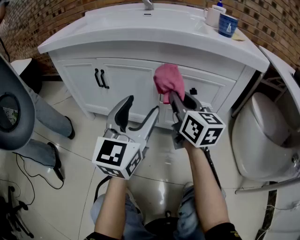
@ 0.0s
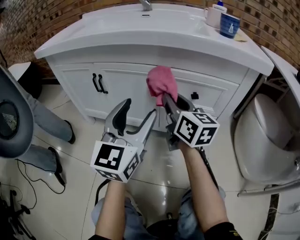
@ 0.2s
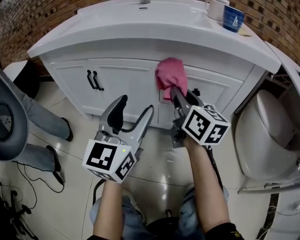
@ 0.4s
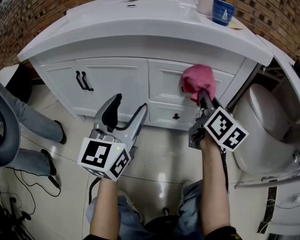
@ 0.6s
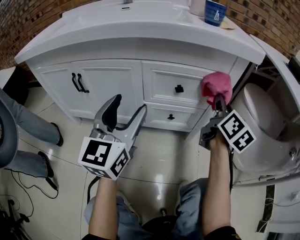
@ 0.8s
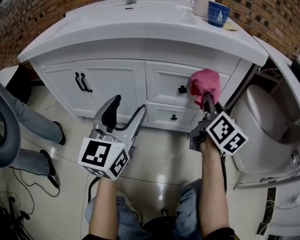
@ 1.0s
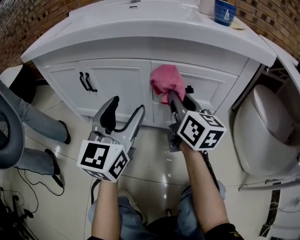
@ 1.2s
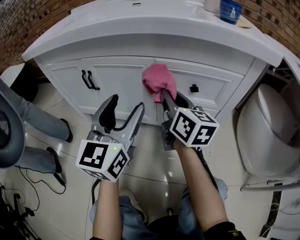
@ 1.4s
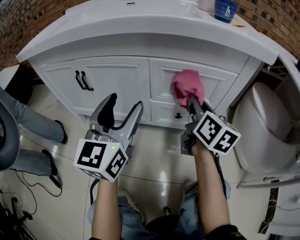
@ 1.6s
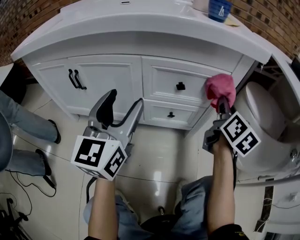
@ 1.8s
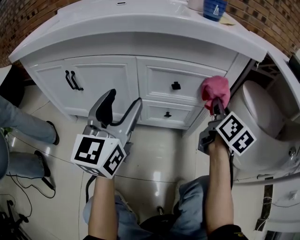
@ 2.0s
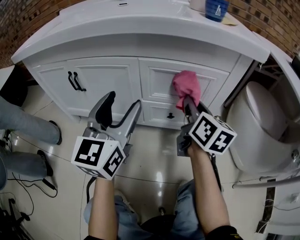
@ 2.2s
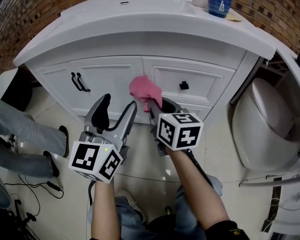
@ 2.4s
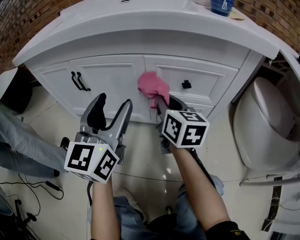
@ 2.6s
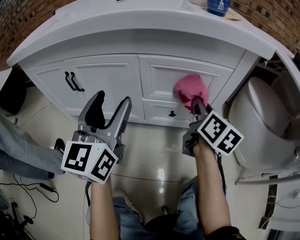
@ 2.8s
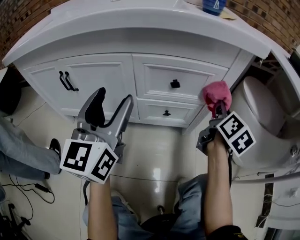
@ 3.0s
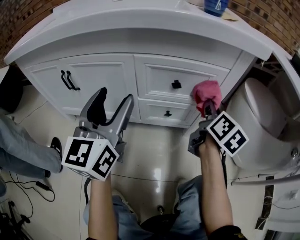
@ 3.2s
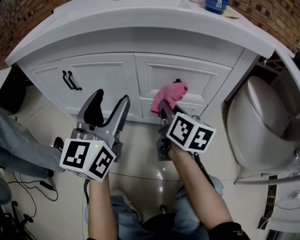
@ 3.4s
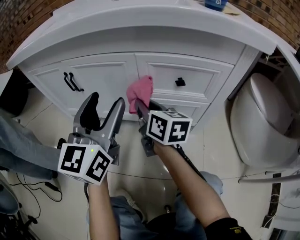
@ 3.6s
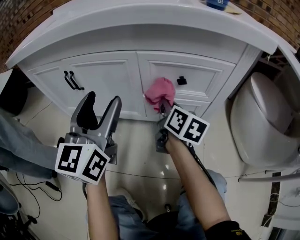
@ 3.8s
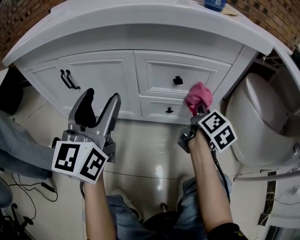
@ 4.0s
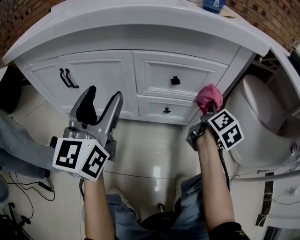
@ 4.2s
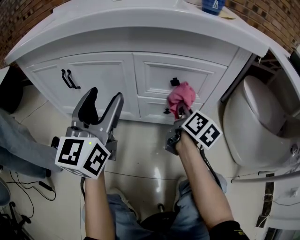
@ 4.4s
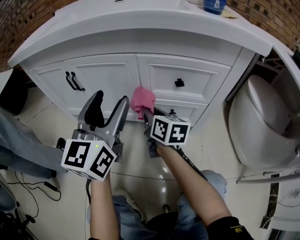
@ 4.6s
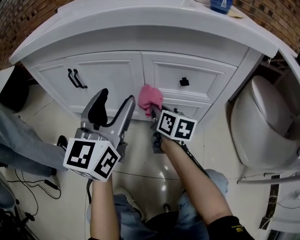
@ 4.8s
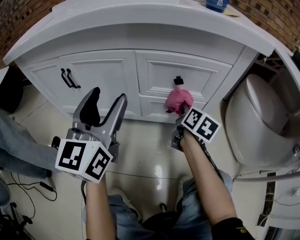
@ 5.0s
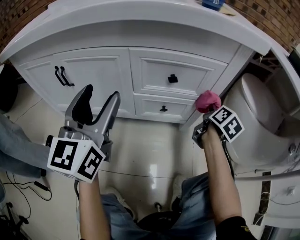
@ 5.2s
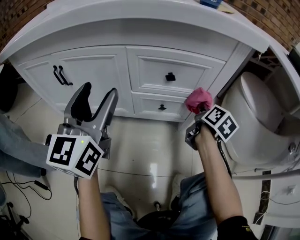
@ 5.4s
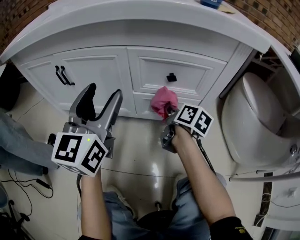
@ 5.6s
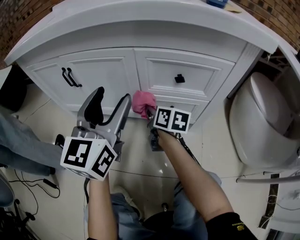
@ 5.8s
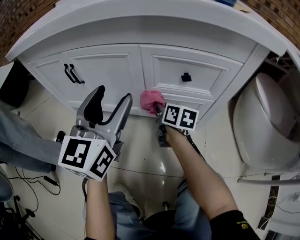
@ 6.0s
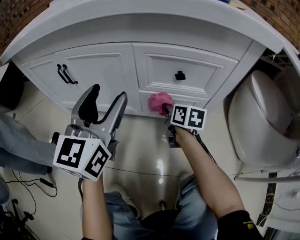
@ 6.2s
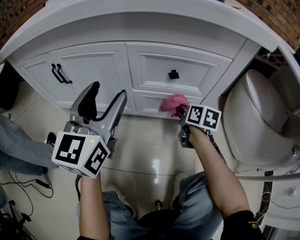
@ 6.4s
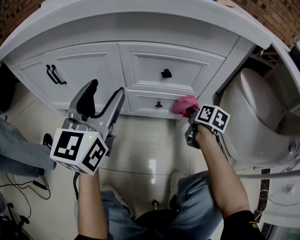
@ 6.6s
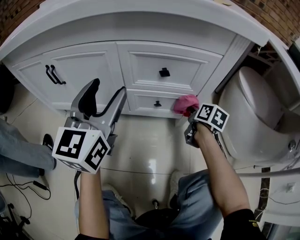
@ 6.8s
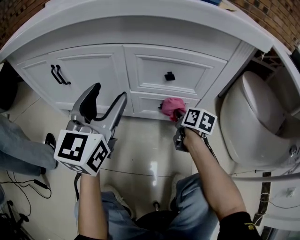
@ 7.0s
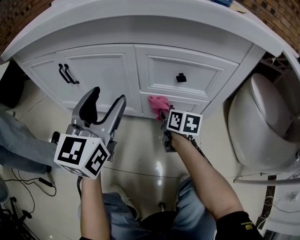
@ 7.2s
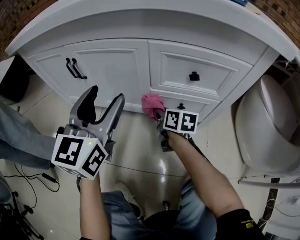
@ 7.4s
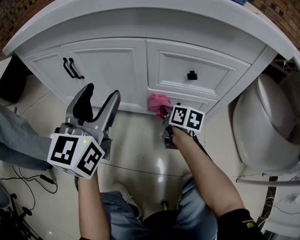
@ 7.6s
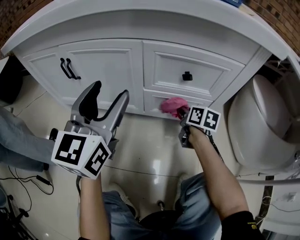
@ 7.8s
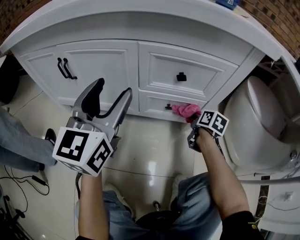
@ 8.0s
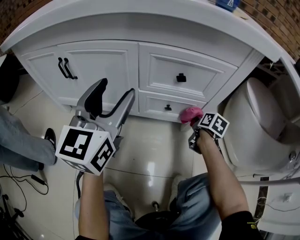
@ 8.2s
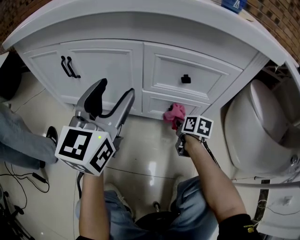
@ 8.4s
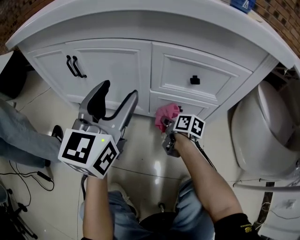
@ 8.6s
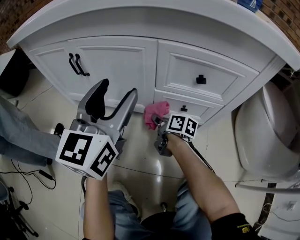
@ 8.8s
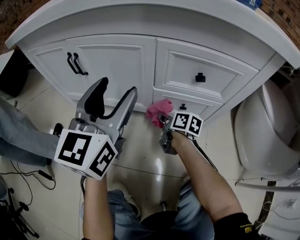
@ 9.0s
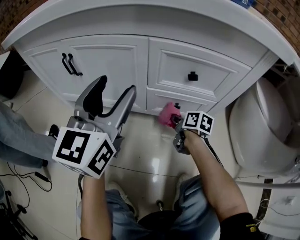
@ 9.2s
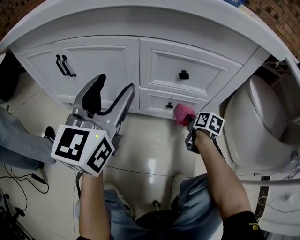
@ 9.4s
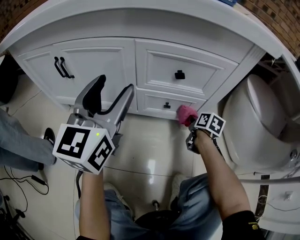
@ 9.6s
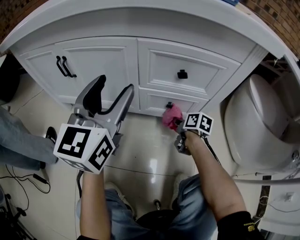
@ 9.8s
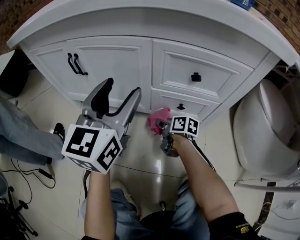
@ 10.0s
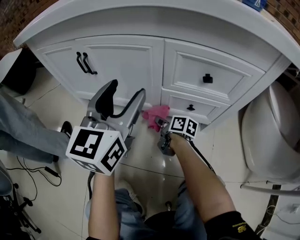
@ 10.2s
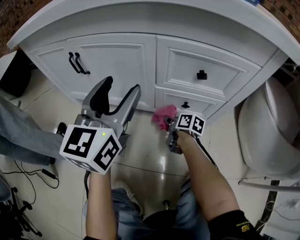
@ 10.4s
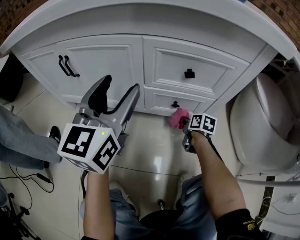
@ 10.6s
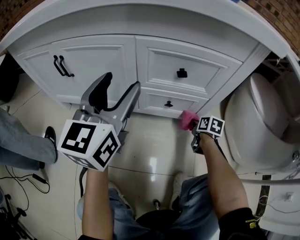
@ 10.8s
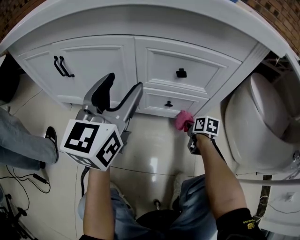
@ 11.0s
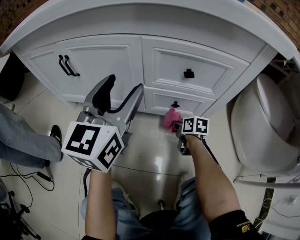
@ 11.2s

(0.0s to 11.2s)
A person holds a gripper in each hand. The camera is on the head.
0.0s - 1.6s: The left gripper heads forward, covering about 5 cm. Meanwhile the right gripper goes left and right, approximately 25 cm each way, reversing 2 times, and turns by about 20 degrees.
1.6s - 3.2s: The right gripper moves left and right over approximately 30 cm, changing direction 3 times.
3.2s - 4.8s: The right gripper ends up some 25 cm from where it was, and turns by roughly 30 degrees.
6.4s - 8.0s: The right gripper moves left and right over approximately 25 cm, changing direction 2 times. Meanwhile the left gripper travels to the left and back again, roughly 5 cm each way.
8.0s - 9.6s: The right gripper goes to the left and returns, roughly 25 cm each way.
9.6s - 11.2s: The right gripper goes left and right, some 30 cm each way, reversing 2 times, and changes its angle by approximately 20 degrees.

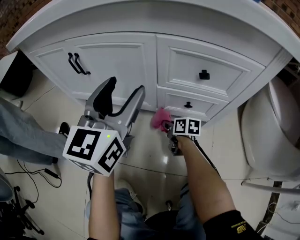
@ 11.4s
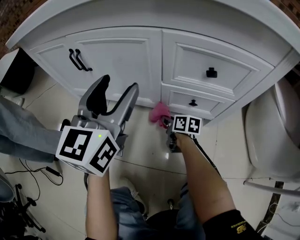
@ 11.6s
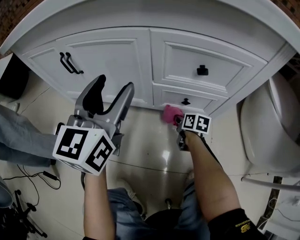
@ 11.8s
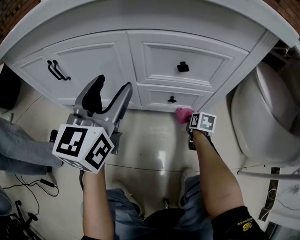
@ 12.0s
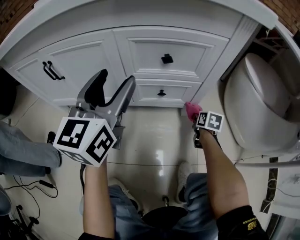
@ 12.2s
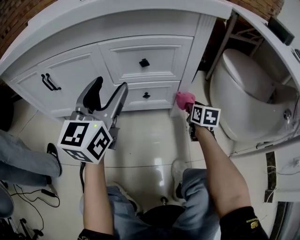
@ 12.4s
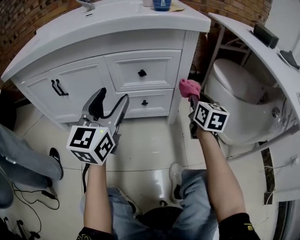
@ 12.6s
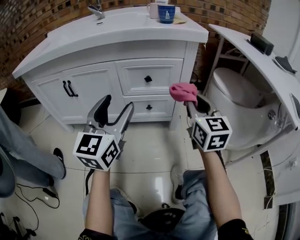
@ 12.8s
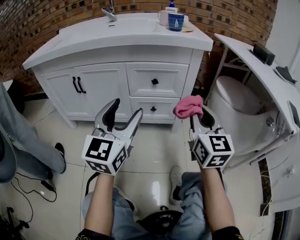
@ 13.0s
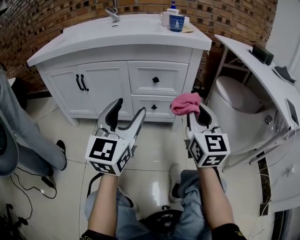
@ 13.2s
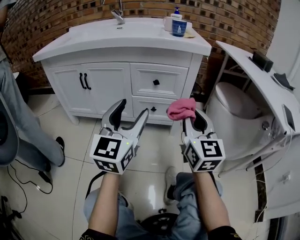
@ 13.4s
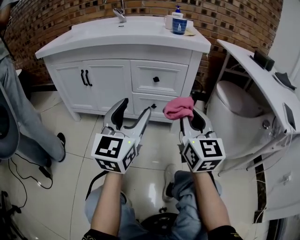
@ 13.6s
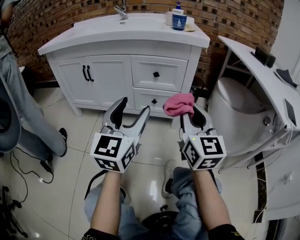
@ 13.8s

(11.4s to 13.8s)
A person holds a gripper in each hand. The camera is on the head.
11.4s - 12.6s: The right gripper is displaced upward by about 30 cm, and swivels about 50 degrees. Meanwhile the left gripper ends up some 15 cm from where it was.
12.6s - 13.8s: The right gripper heads backward and upward, covering about 25 cm, and swivels roughly 30 degrees; the left gripper travels backward by about 15 cm.

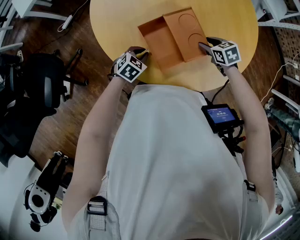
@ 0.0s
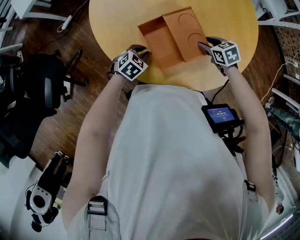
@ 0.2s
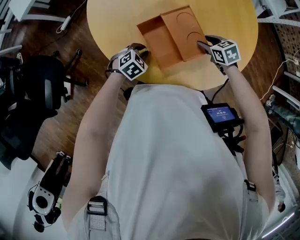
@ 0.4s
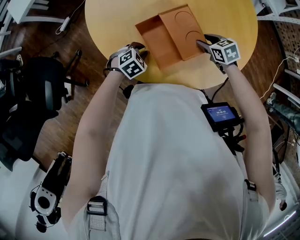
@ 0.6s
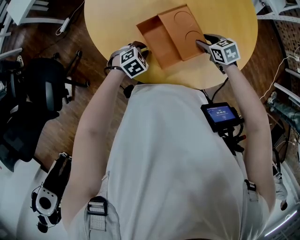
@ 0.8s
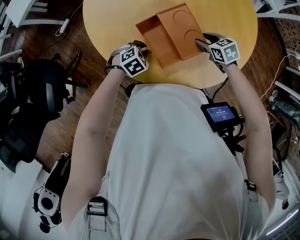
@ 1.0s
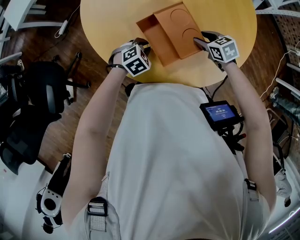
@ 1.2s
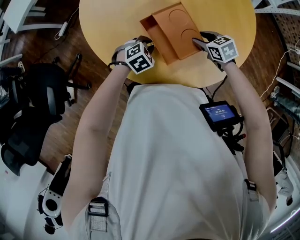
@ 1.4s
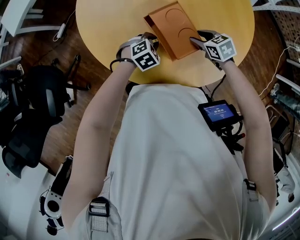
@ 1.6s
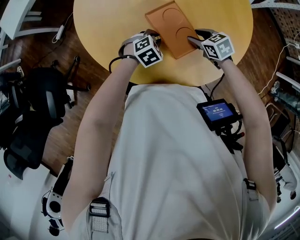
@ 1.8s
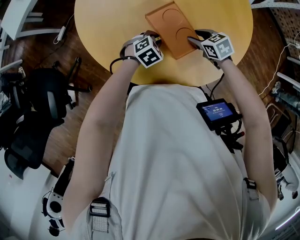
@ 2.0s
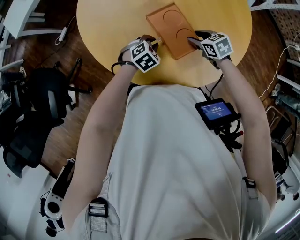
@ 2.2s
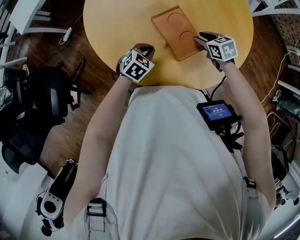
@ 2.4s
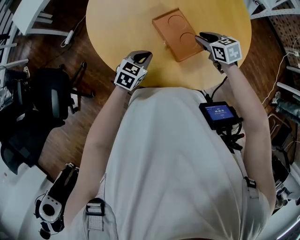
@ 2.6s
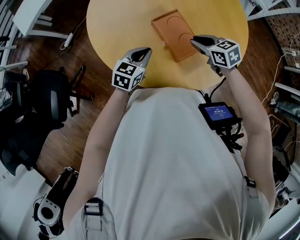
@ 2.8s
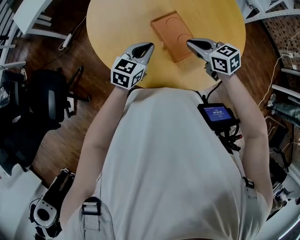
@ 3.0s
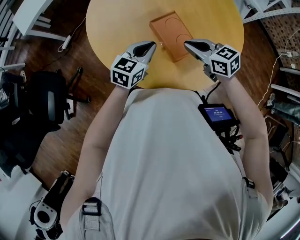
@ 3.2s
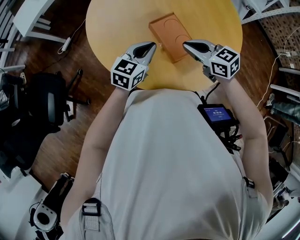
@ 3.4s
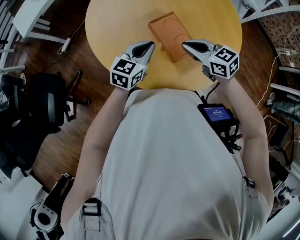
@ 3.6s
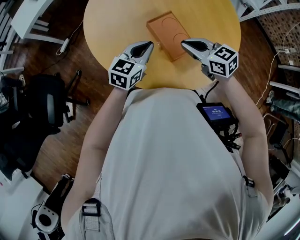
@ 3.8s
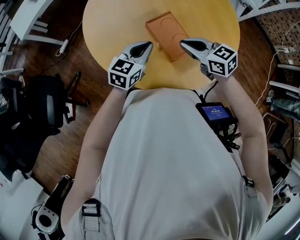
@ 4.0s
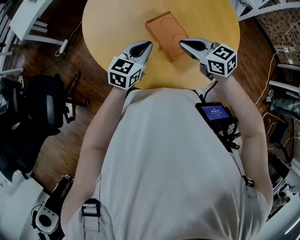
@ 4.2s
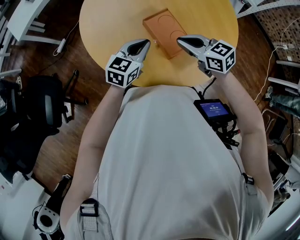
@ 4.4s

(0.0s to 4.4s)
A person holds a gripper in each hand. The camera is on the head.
0.0s - 1.4s: The left gripper goes roughly 5 cm to the right, and rotates some 20 degrees.
1.4s - 3.0s: Both grippers travel together upward, about 15 cm. The left gripper tips its fingers upward by some 40 degrees, while the right gripper turns by some 20 degrees, and closes.
3.0s - 4.4s: There are only small adjustments of the grippers.

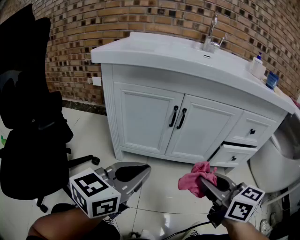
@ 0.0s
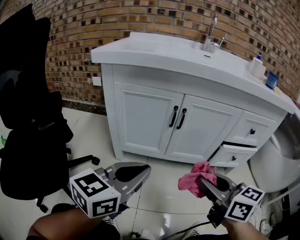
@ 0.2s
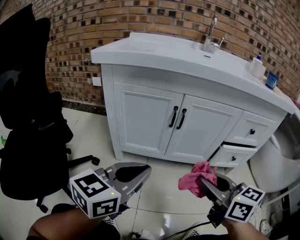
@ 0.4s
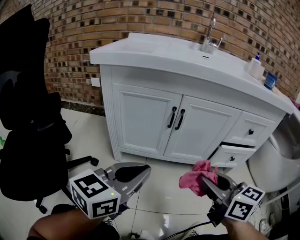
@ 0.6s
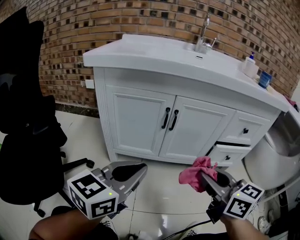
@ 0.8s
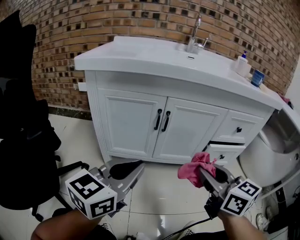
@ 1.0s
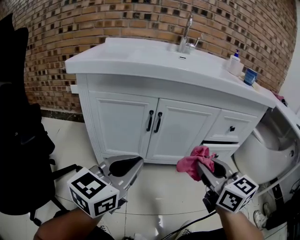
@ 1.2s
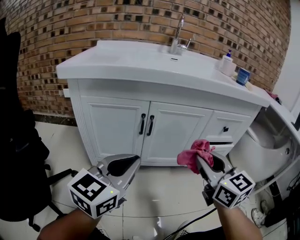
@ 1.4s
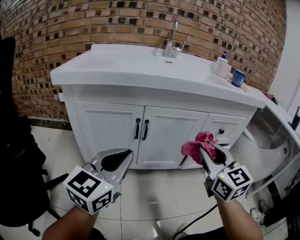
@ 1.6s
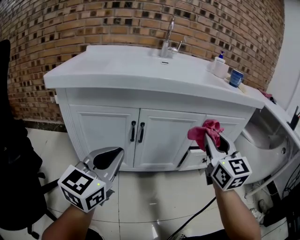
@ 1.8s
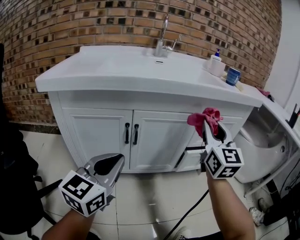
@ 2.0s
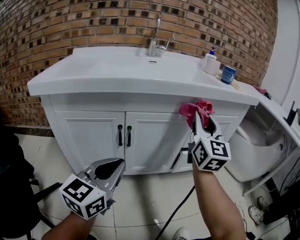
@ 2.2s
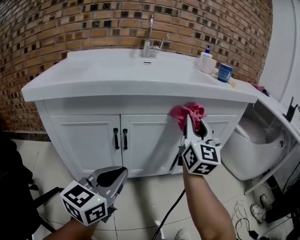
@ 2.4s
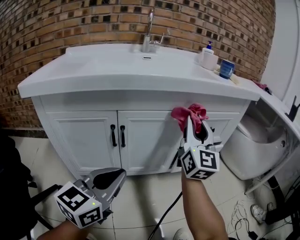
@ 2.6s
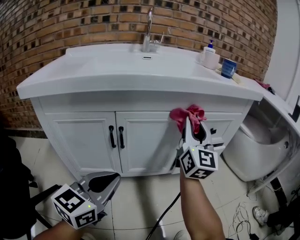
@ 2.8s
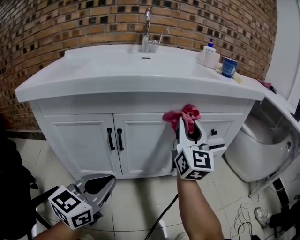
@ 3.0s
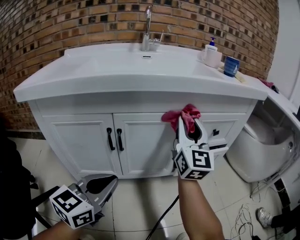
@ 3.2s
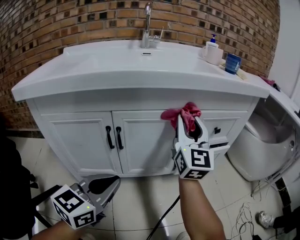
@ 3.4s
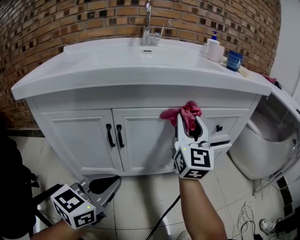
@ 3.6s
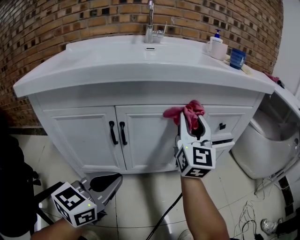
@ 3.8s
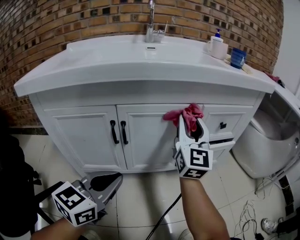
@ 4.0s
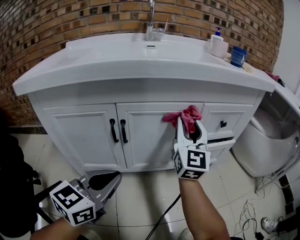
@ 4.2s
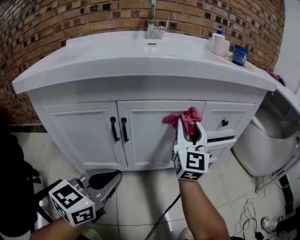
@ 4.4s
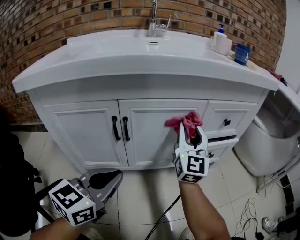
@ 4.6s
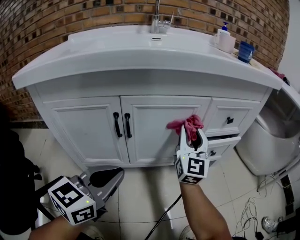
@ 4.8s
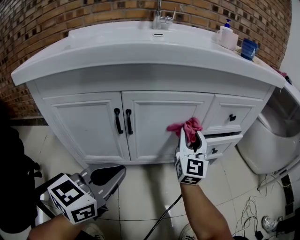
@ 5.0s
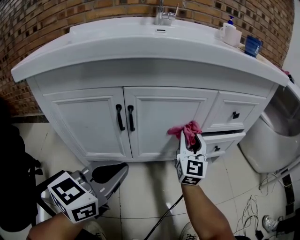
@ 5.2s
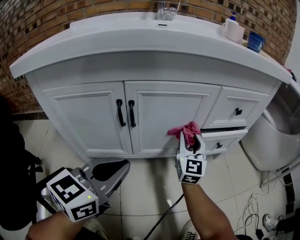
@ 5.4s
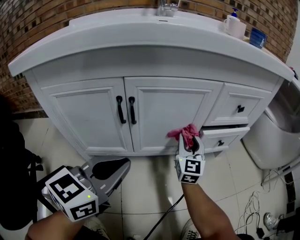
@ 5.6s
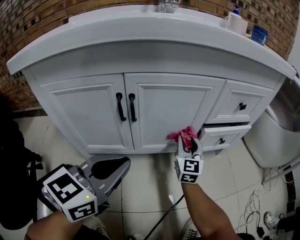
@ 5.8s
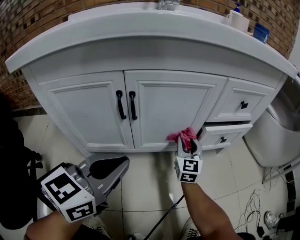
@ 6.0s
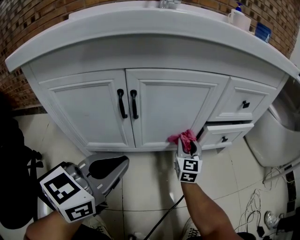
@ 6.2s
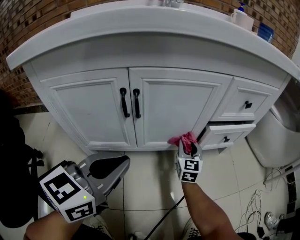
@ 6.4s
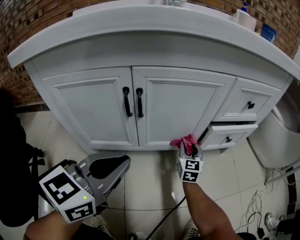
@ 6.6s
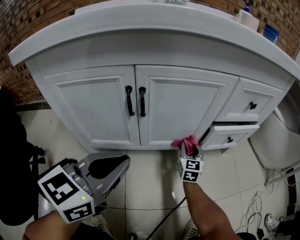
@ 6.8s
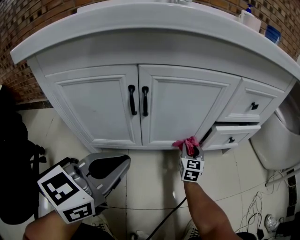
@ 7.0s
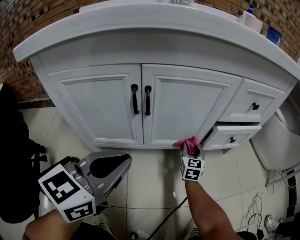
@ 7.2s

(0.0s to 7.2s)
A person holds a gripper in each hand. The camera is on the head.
0.0s - 1.4s: The right gripper moves to the right, forward and upward, some 10 cm, and changes its angle by approximately 30 degrees; the left gripper shifts roughly 5 cm forward.
1.4s - 2.8s: The left gripper moves forward and downward, some 10 cm; the right gripper is displaced forward by some 20 cm, and changes its angle by roughly 40 degrees.
2.8s - 4.4s: The right gripper travels downward by roughly 5 cm.
4.4s - 5.8s: The right gripper shifts roughly 20 cm downward.
5.8s - 7.2s: The right gripper shifts roughly 10 cm downward.
